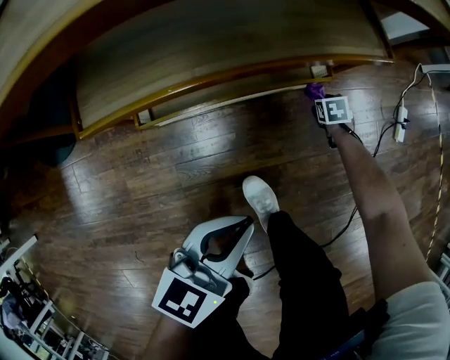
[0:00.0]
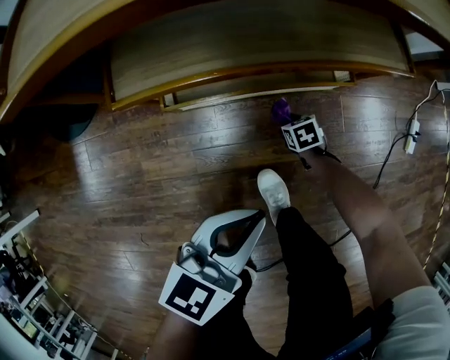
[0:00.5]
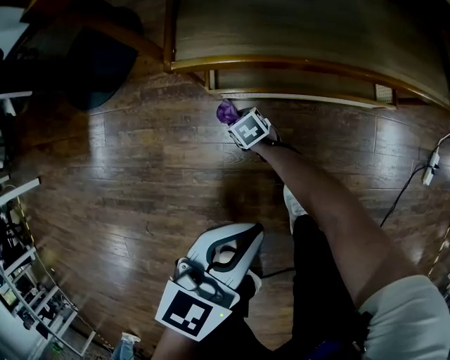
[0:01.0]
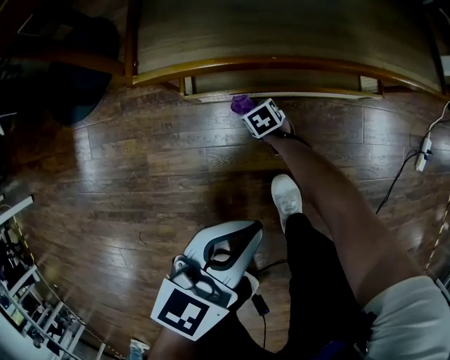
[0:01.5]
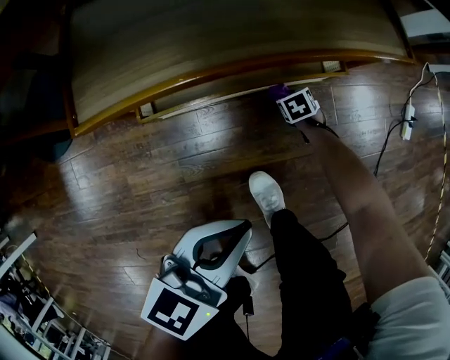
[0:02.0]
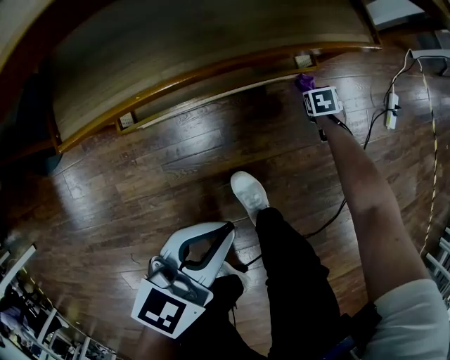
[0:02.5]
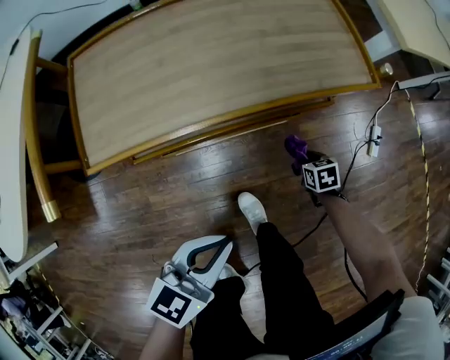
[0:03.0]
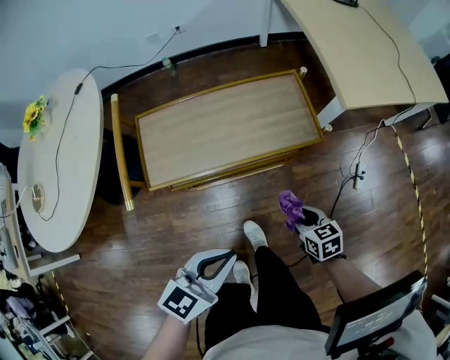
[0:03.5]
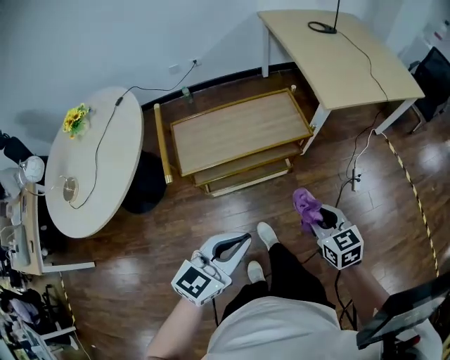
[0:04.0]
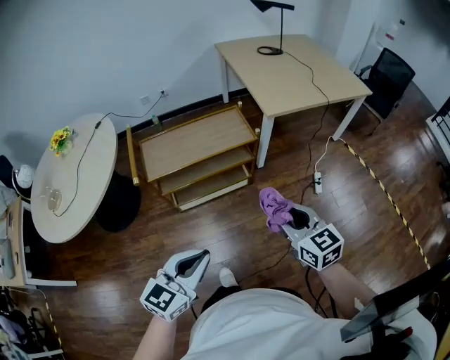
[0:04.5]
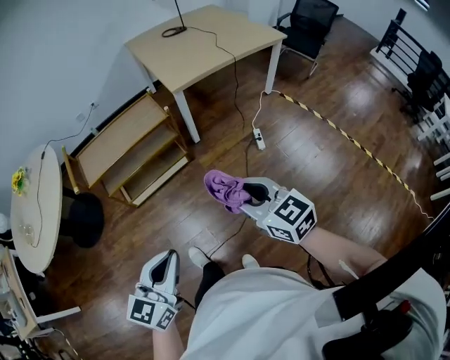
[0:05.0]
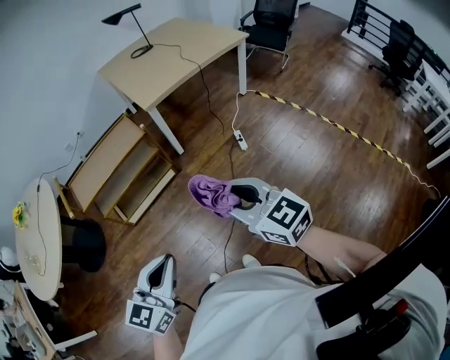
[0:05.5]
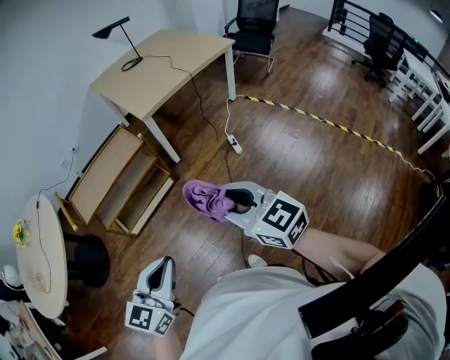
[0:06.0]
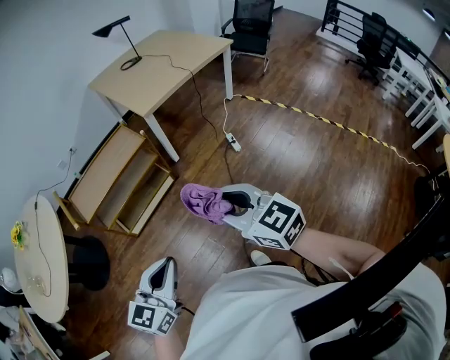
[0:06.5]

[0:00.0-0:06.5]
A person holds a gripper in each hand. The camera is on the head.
0:02.0 to 0:04.5: The right gripper heads upward, covering approximately 90 cm, and points its fingers roughly 50 degrees further upward. Meanwhile the left gripper goes approximately 60 cm upward.
0:04.5 to 0:06.5: The left gripper goes about 15 cm backward, to the right and upward. Meanwhile the right gripper goes about 20 cm backward, upward and to the right.

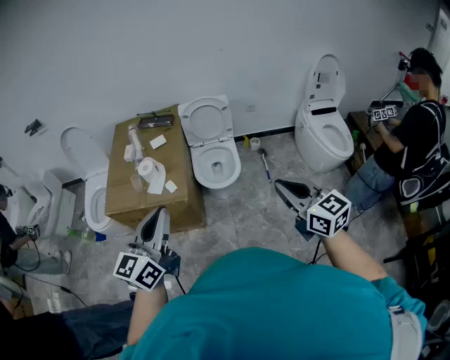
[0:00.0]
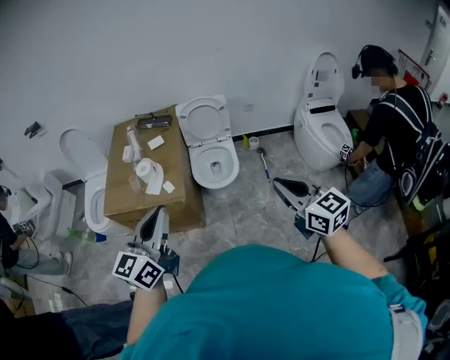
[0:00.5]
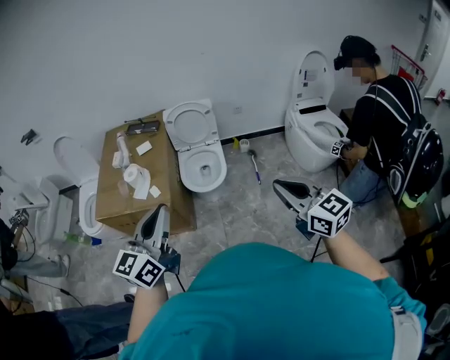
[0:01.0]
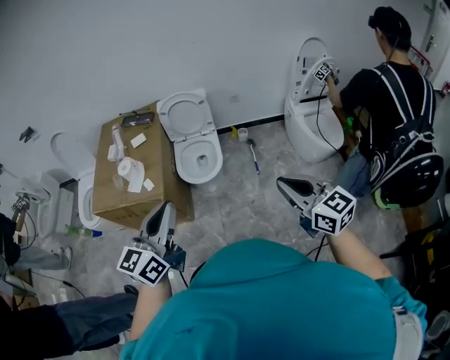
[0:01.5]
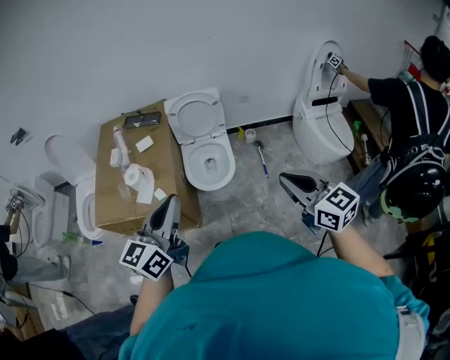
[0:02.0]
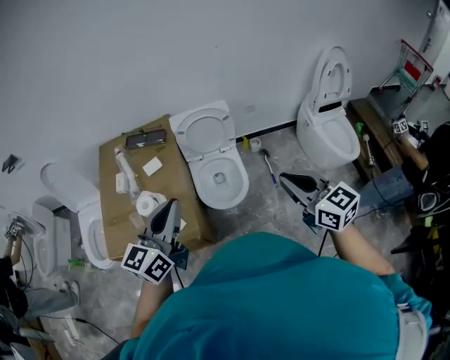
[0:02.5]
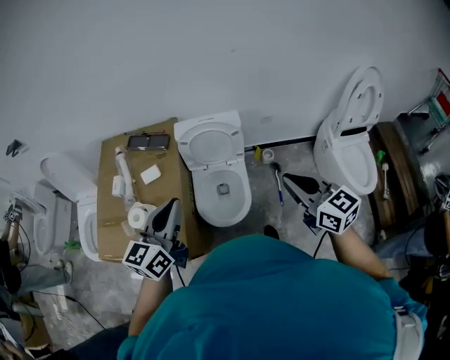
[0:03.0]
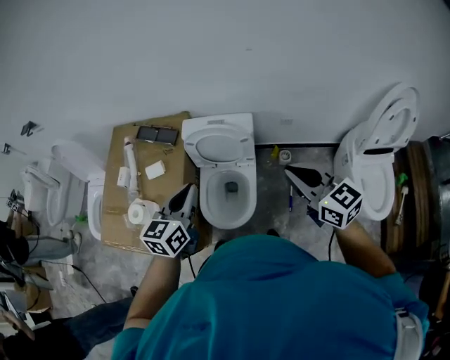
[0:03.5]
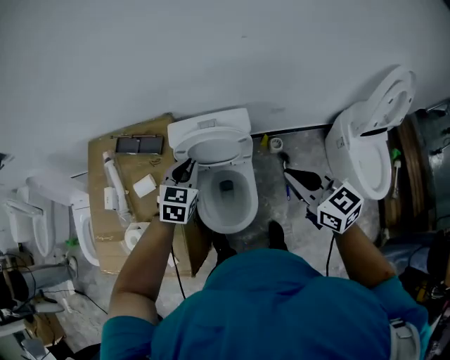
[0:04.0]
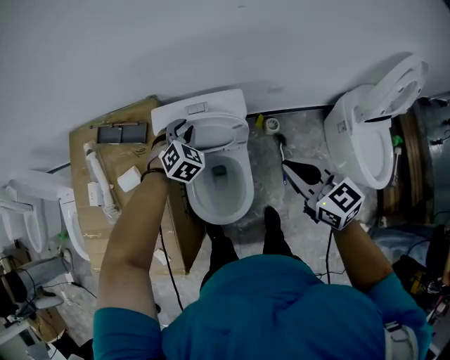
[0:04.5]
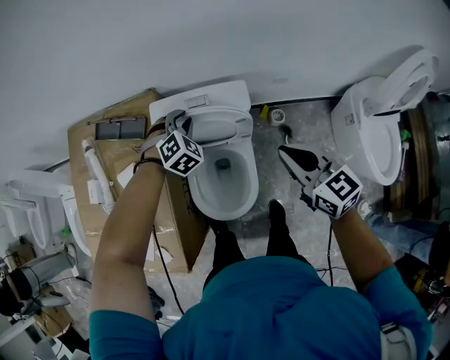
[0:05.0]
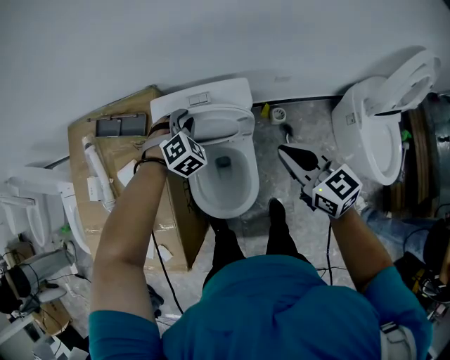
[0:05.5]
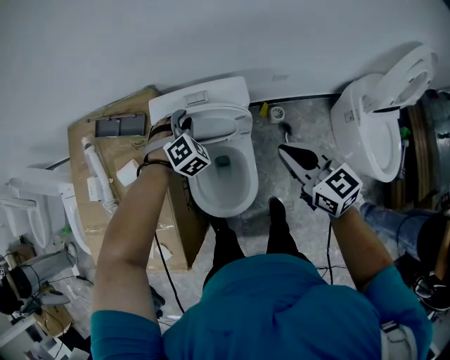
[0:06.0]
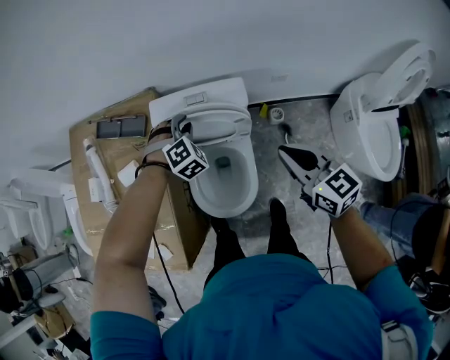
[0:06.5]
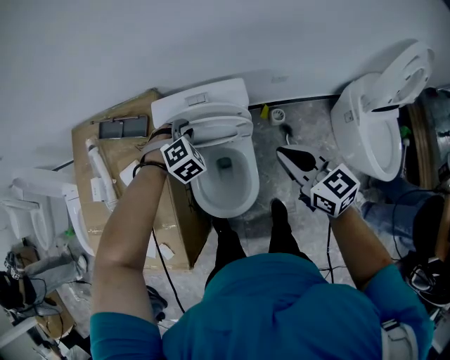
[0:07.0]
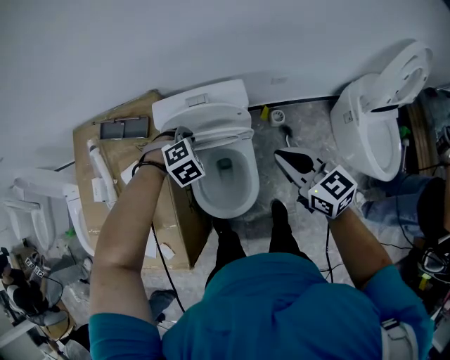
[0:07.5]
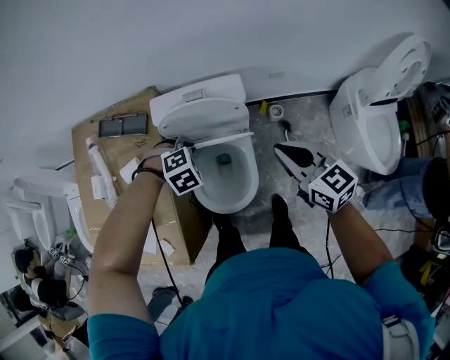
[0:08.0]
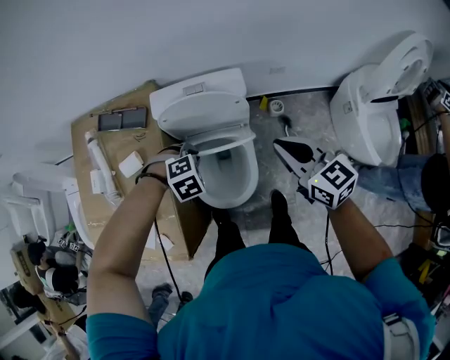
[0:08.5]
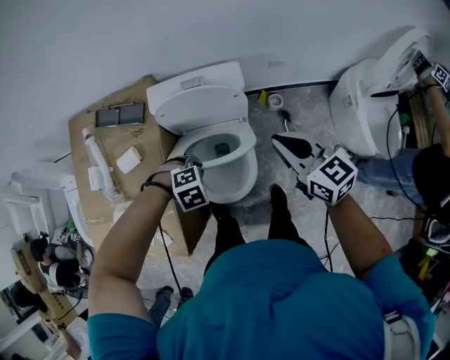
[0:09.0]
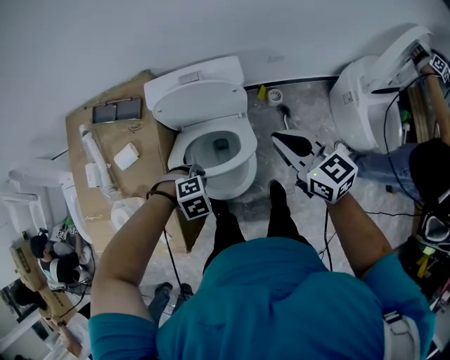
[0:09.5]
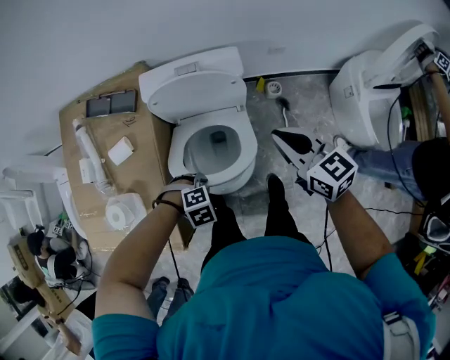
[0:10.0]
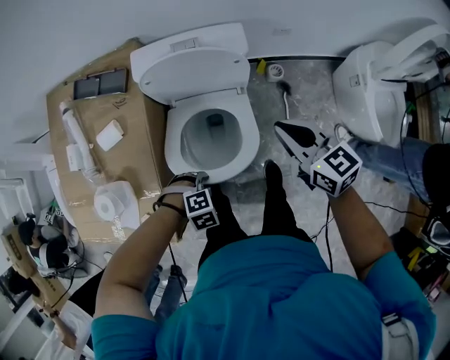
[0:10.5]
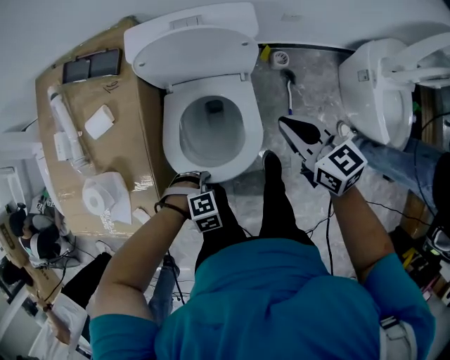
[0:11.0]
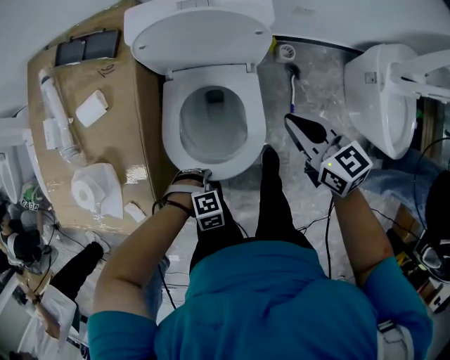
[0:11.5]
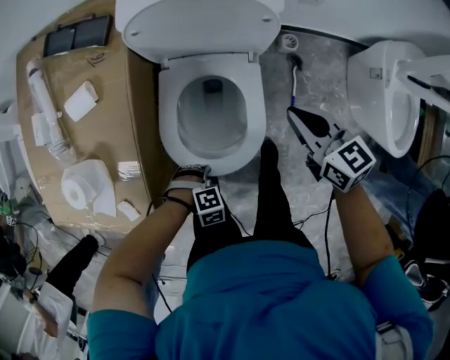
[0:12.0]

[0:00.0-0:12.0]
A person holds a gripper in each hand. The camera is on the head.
0:00.0 to 0:02.0: Both grippers travel together forward and to the right, some 15 cm.
0:02.0 to 0:04.0: Both grippers are carried forward, about 60 cm. The left gripper angles its fingers downward, by some 40 degrees.
0:04.0 to 0:06.0: The left gripper goes some 20 cm downward, forward and to the right, and rotates around the line of its fingers by roughly 50 degrees, clockwise from behind; the right gripper travels downward and forward by approximately 10 cm.
0:06.0 to 0:08.0: The left gripper heads backward, covering some 10 cm, and changes its angle by some 30 degrees.
0:08.0 to 0:10.0: The left gripper moves approximately 20 cm.
0:10.0 to 0:12.0: The two grippers go roughly 15 cm downward.

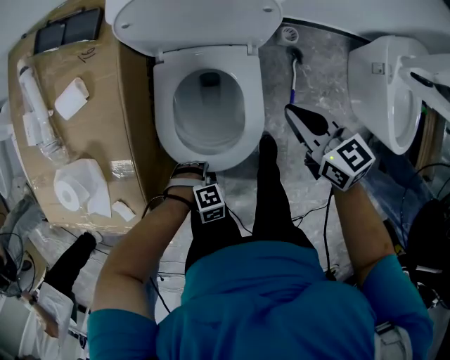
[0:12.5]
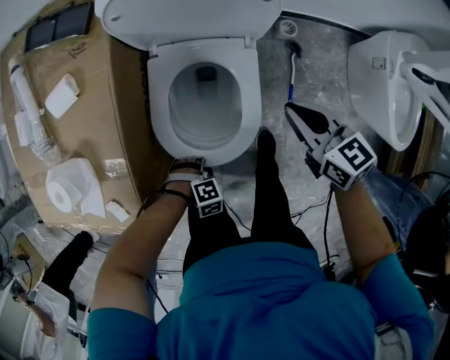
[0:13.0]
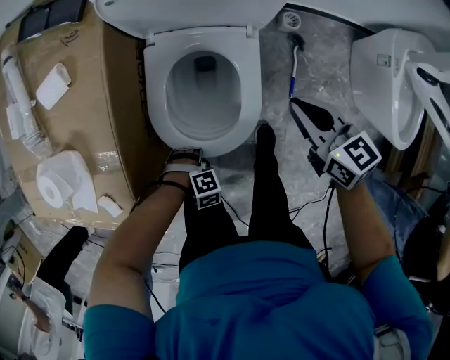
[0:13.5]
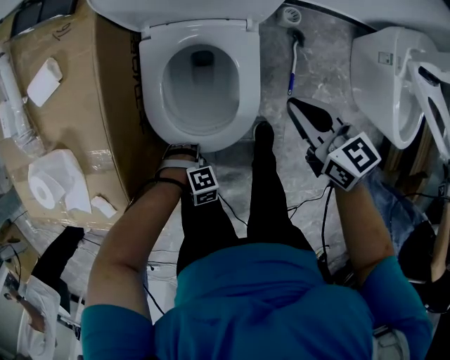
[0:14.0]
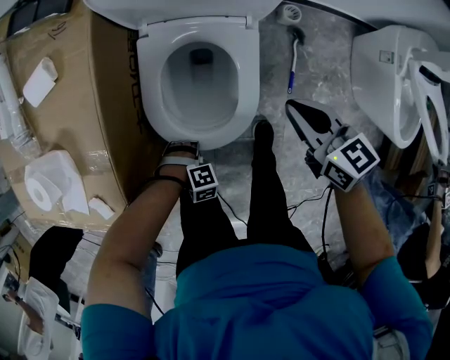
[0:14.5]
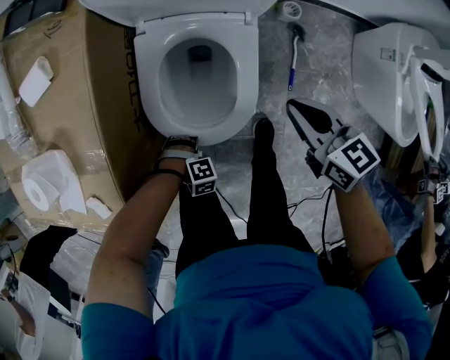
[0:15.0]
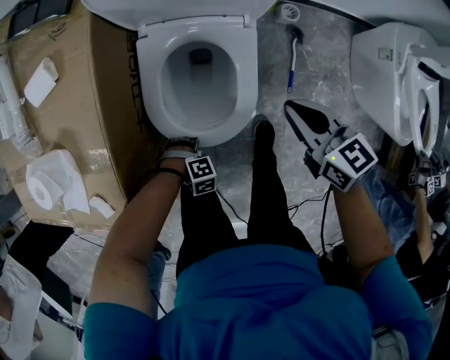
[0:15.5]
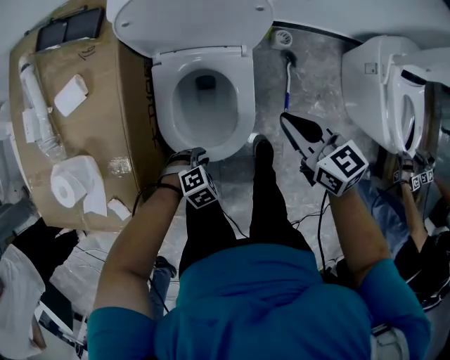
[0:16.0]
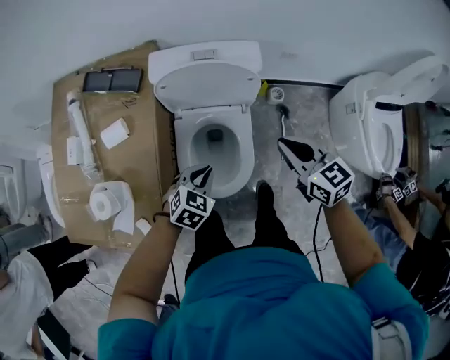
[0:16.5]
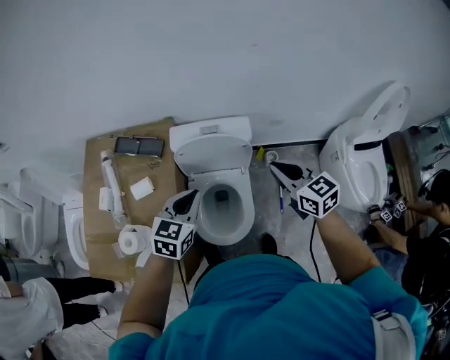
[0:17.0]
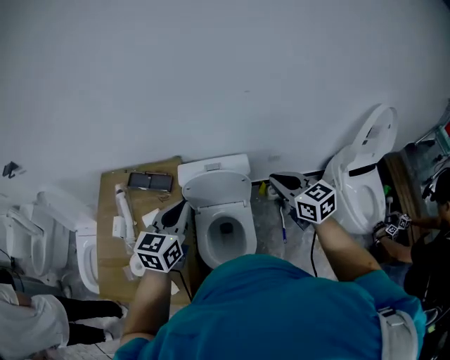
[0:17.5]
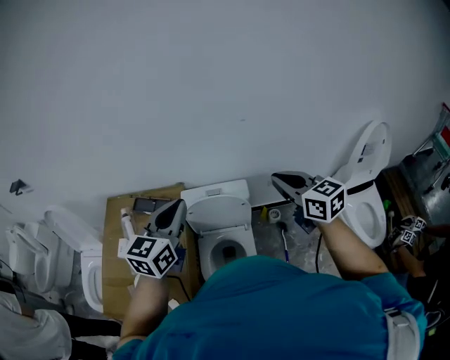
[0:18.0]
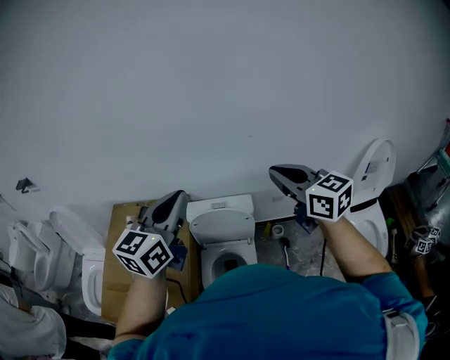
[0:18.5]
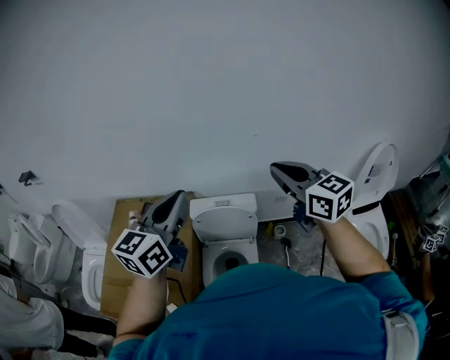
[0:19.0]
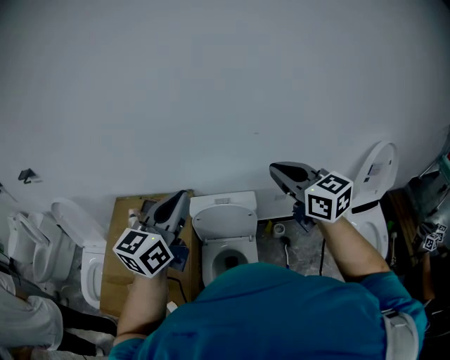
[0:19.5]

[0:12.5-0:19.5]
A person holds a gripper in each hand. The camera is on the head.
0:12.5 to 0:14.5: The left gripper is displaced downward by roughly 10 cm, while the right gripper goes about 5 cm downward.
0:14.5 to 0:16.0: Both grippers move upward, about 10 cm. The left gripper swivels about 30 degrees.
0:16.0 to 0:17.5: The left gripper moves upward, roughly 60 cm, angles its fingers upward, by approximately 60 degrees, and closes. The right gripper is displaced upward by some 35 cm.
0:17.5 to 0:19.5: The two grippers go some 20 cm upward.

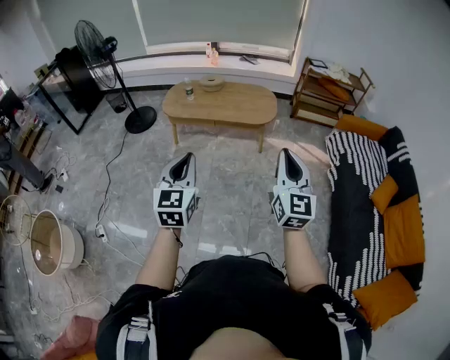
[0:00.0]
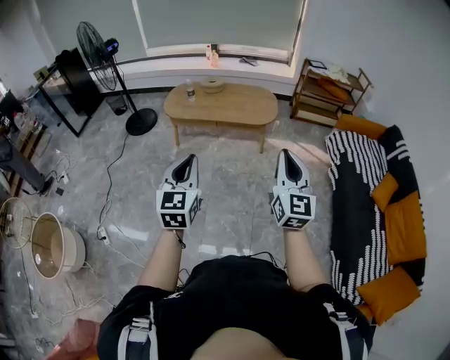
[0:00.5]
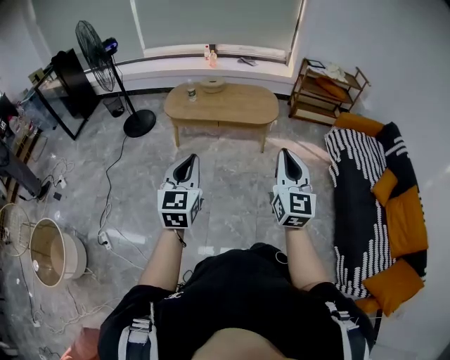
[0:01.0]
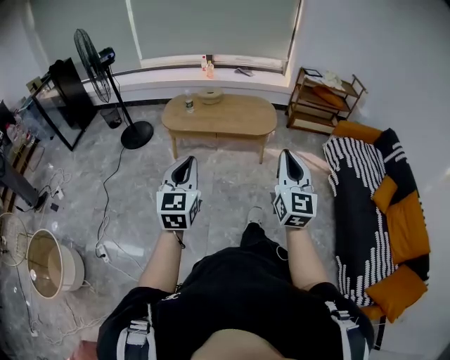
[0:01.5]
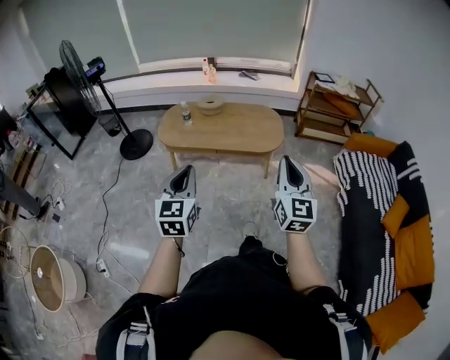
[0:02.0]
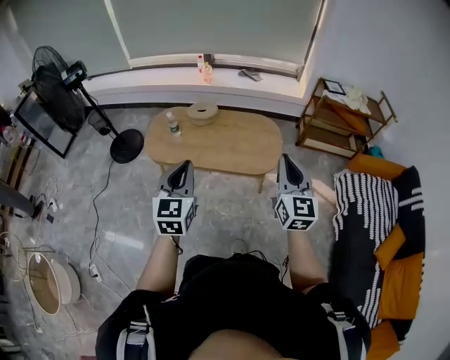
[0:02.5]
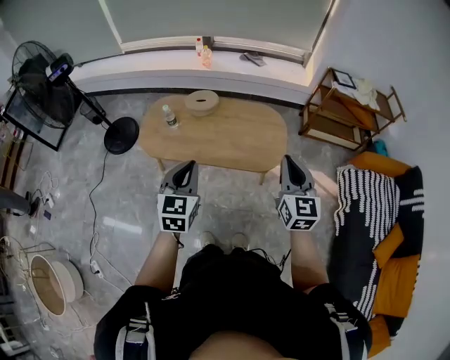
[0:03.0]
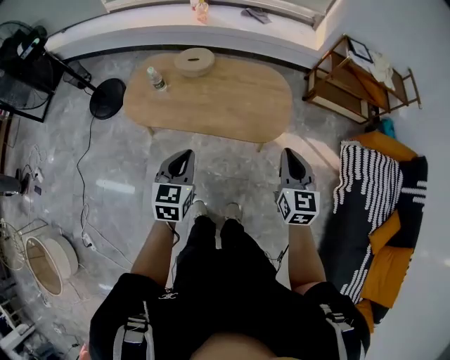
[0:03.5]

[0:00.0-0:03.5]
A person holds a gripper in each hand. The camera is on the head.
0:00.0 to 0:02.0: The grippers both shift forward by approximately 25 cm.
0:02.0 to 0:03.5: The two grippers travel together, forward, some 40 cm. Both grippers travel together downward, some 20 cm. The left gripper turns by some 20 degrees, while the right gripper swivels about 30 degrees.
